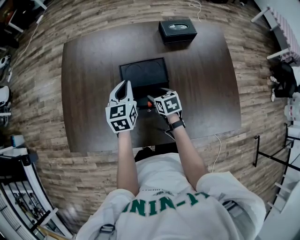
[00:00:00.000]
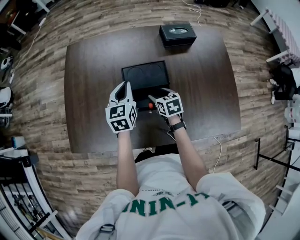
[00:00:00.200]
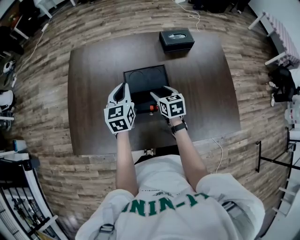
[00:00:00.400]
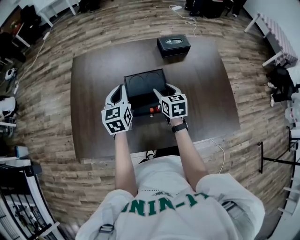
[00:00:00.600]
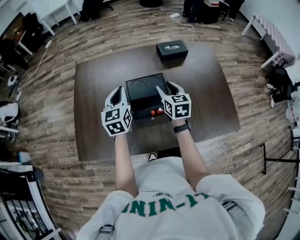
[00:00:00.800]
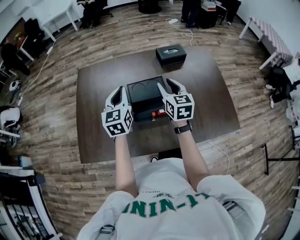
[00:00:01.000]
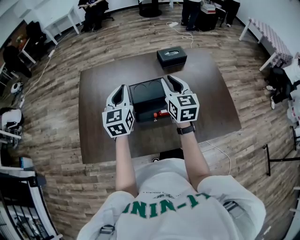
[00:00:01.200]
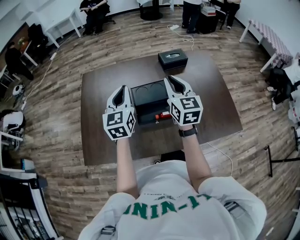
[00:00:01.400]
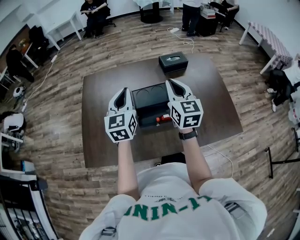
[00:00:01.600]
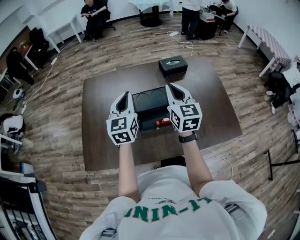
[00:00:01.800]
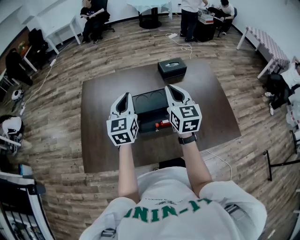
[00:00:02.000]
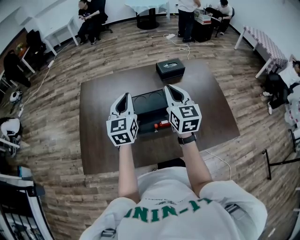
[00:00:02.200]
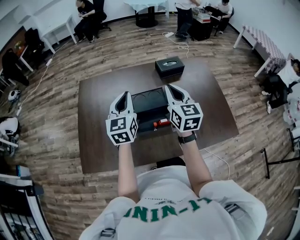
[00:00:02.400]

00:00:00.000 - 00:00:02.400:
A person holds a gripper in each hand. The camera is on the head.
00:00:00.000 - 00:00:01.200: The right gripper travels upward by approximately 30 cm, points its fingers about 40 degrees further upward, and closes up. The left gripper is displaced upward by about 15 cm.
00:00:01.200 - 00:00:02.400: The grippers make only small movements.

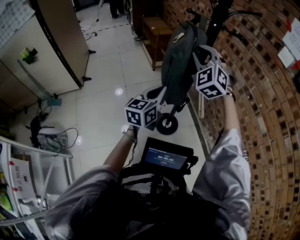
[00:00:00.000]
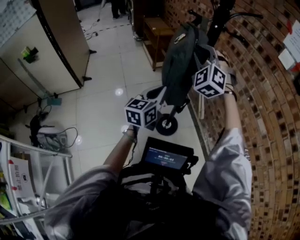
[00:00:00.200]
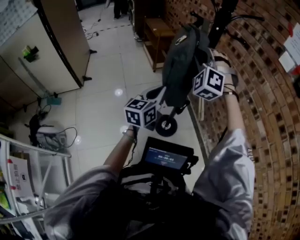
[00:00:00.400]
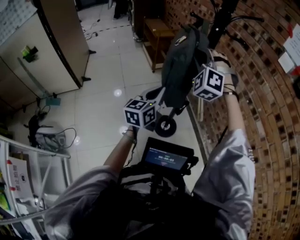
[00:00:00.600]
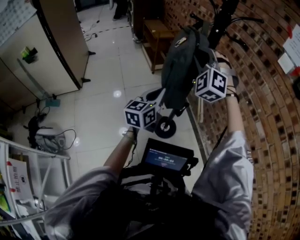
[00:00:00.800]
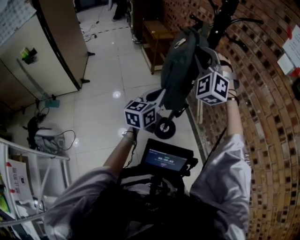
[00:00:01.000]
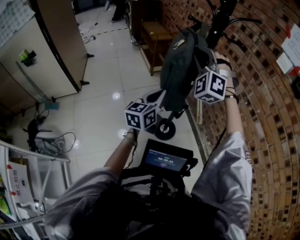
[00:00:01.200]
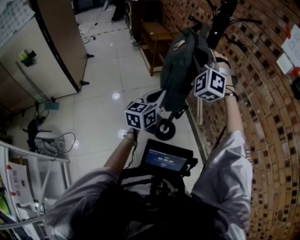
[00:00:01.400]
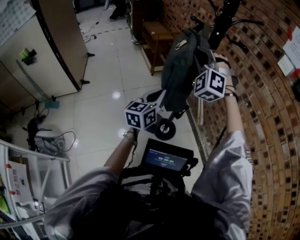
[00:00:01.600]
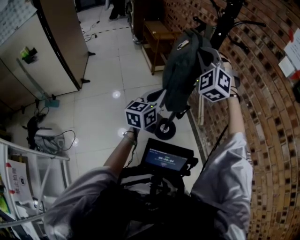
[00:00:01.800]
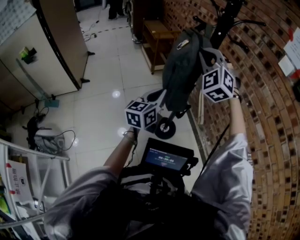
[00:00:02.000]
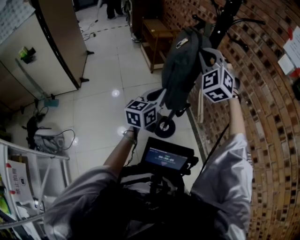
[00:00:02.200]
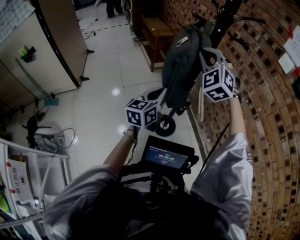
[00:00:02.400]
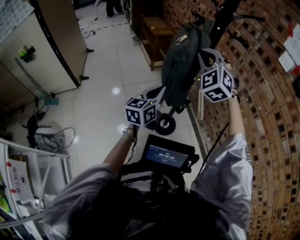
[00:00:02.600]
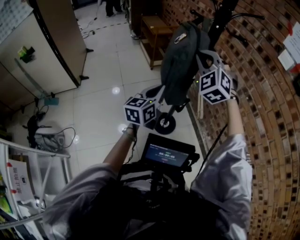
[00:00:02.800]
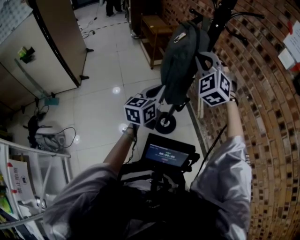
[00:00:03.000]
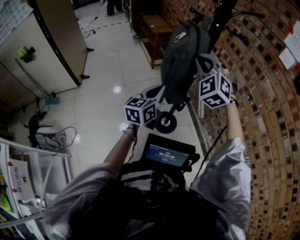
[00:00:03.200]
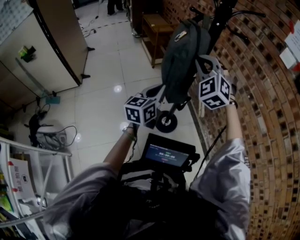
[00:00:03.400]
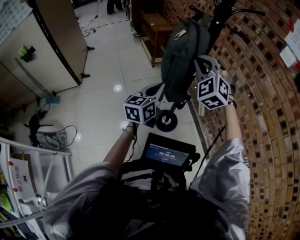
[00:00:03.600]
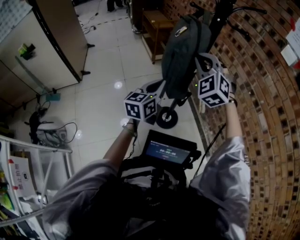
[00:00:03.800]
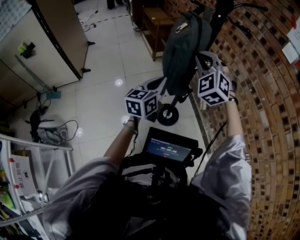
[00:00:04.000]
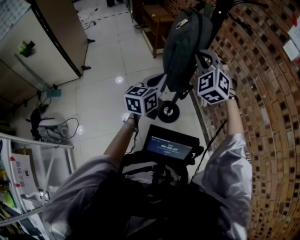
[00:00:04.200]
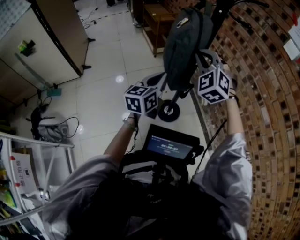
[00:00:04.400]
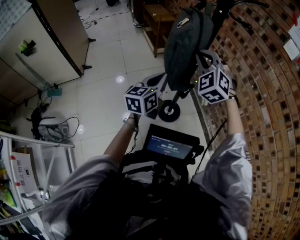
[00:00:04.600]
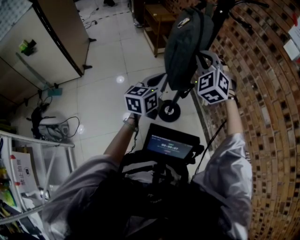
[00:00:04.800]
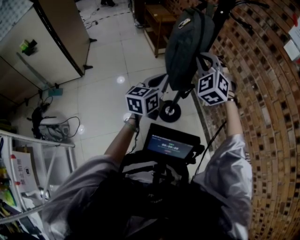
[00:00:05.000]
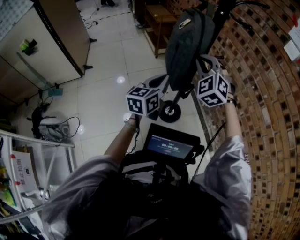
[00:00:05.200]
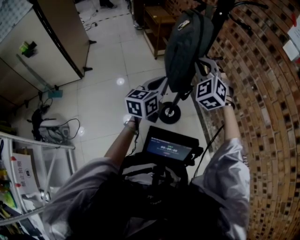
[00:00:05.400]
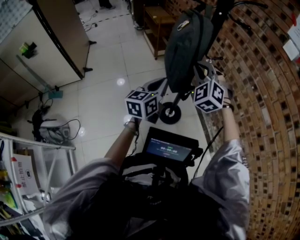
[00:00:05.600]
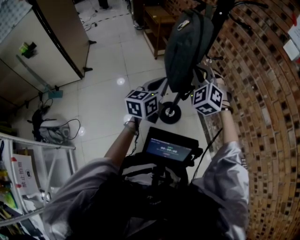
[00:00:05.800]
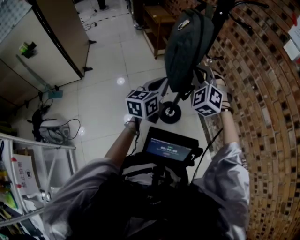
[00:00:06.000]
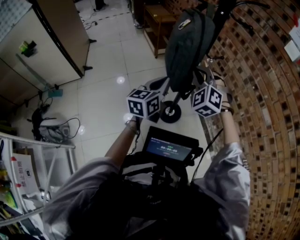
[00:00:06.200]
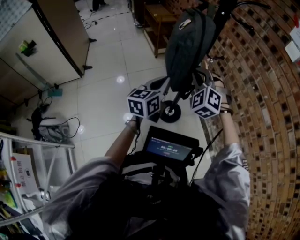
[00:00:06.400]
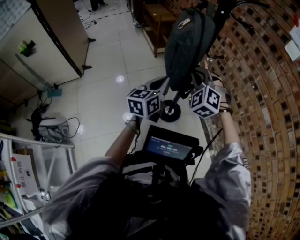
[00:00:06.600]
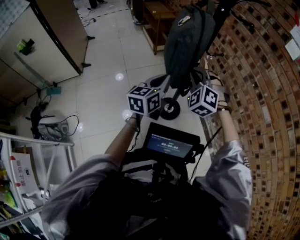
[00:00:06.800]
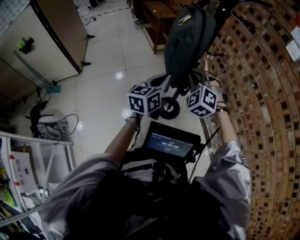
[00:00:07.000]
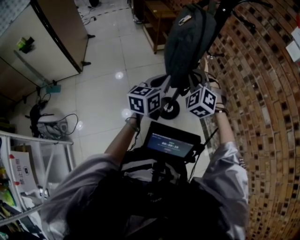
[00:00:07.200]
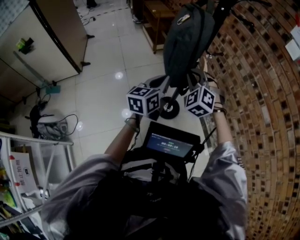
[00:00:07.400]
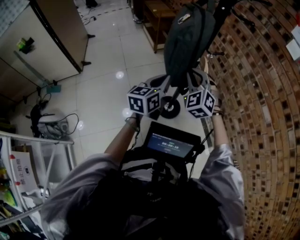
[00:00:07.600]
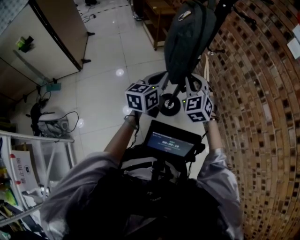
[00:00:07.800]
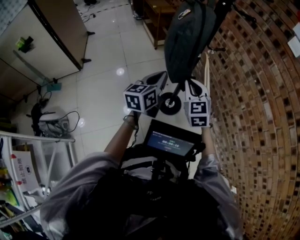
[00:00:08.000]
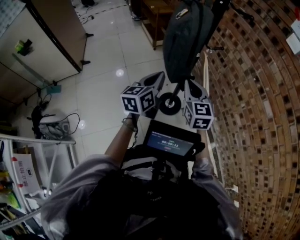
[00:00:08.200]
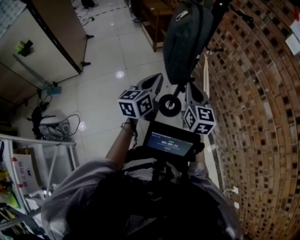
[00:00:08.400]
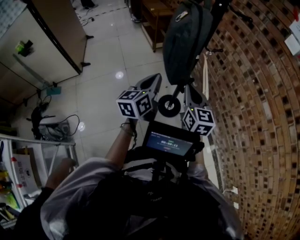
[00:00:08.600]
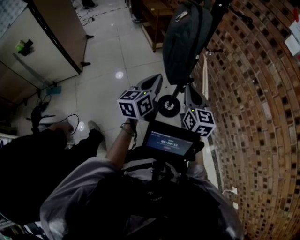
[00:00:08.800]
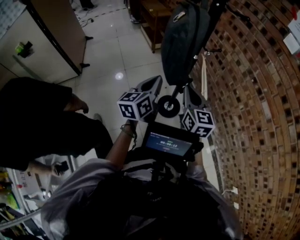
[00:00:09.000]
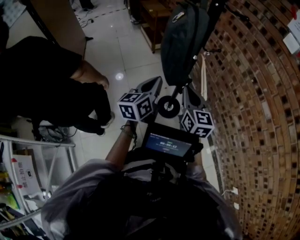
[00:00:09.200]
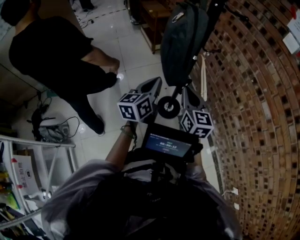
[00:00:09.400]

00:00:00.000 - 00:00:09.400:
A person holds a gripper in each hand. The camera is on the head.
00:00:01.600 - 00:00:03.200: The right gripper ends up some 5 cm from where it was, and swivels about 20 degrees.
00:00:03.200 - 00:00:04.800: There are only small adjustments of the grippers.
00:00:04.800 - 00:00:06.200: The right gripper goes some 5 cm downward.
00:00:06.200 - 00:00:07.800: The right gripper goes approximately 5 cm downward, and turns by approximately 20 degrees.
00:00:07.800 - 00:00:09.400: The right gripper changes place by some 5 cm, and rotates around the line of its fingers by about 50 degrees, clockwise from behind.

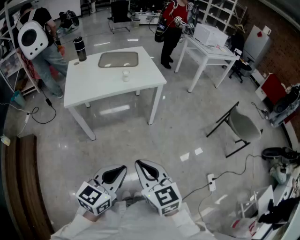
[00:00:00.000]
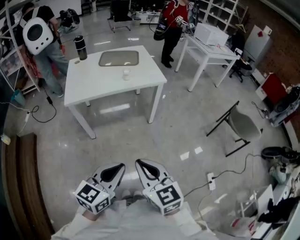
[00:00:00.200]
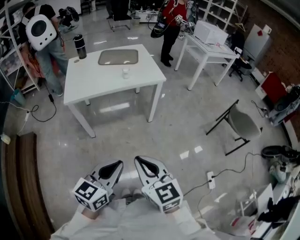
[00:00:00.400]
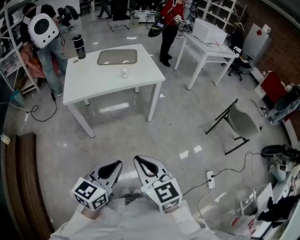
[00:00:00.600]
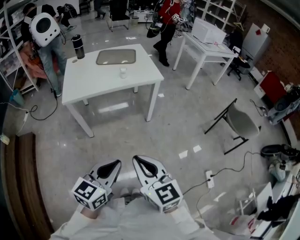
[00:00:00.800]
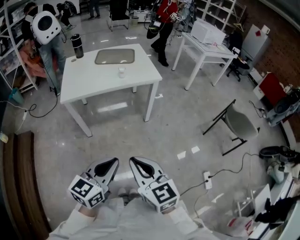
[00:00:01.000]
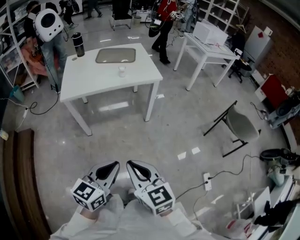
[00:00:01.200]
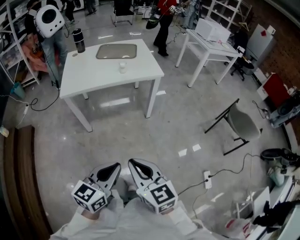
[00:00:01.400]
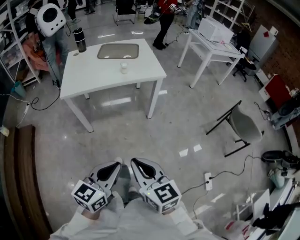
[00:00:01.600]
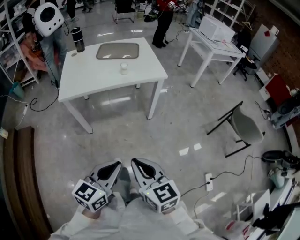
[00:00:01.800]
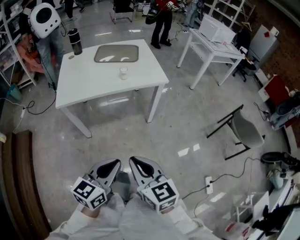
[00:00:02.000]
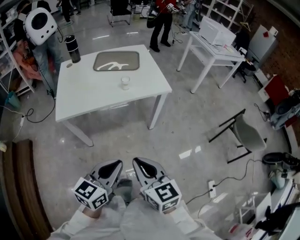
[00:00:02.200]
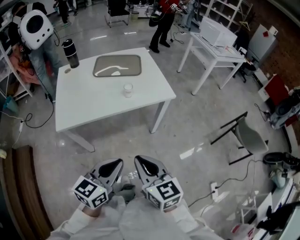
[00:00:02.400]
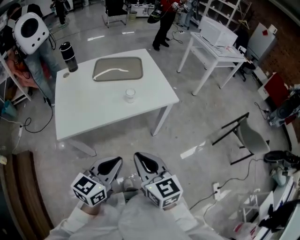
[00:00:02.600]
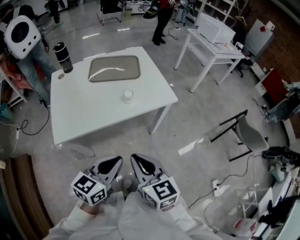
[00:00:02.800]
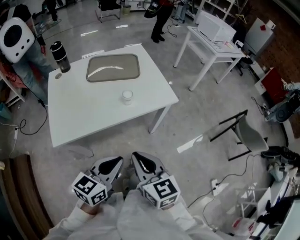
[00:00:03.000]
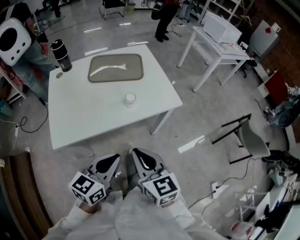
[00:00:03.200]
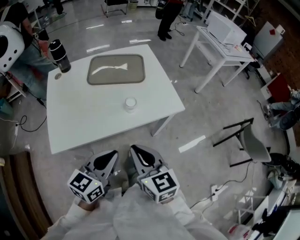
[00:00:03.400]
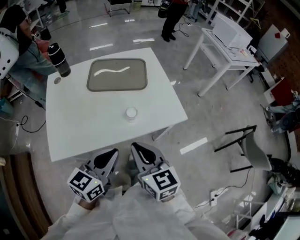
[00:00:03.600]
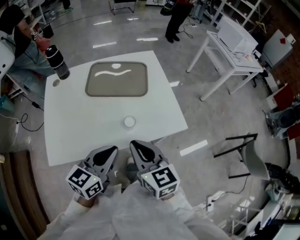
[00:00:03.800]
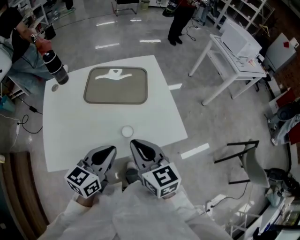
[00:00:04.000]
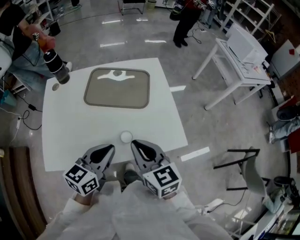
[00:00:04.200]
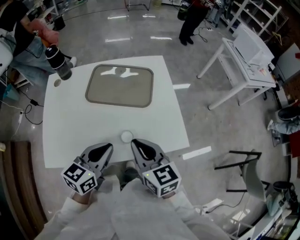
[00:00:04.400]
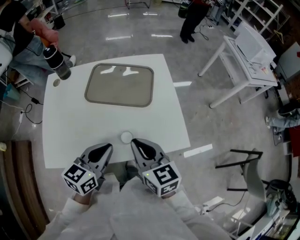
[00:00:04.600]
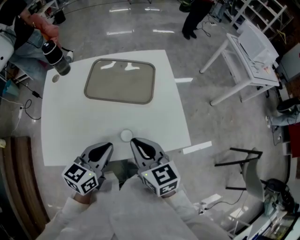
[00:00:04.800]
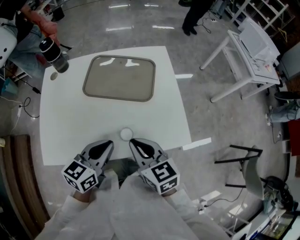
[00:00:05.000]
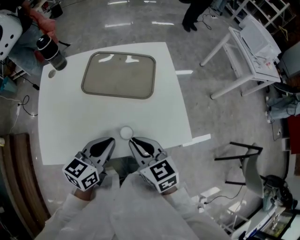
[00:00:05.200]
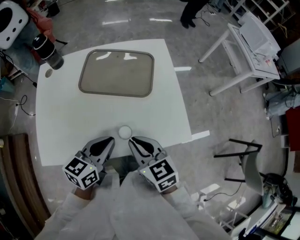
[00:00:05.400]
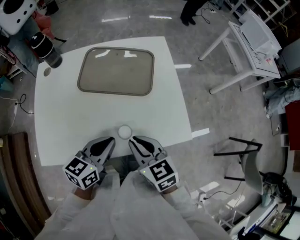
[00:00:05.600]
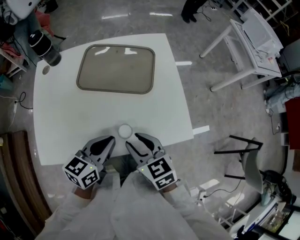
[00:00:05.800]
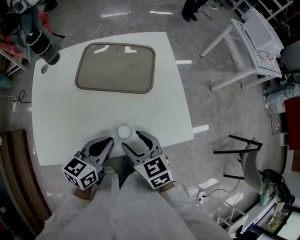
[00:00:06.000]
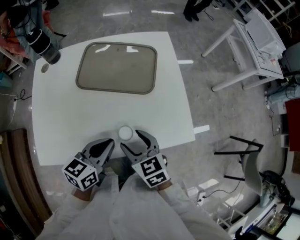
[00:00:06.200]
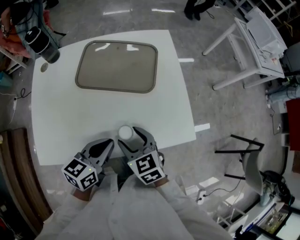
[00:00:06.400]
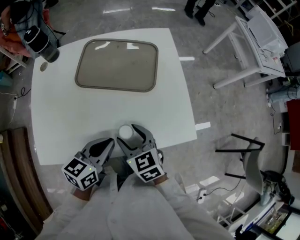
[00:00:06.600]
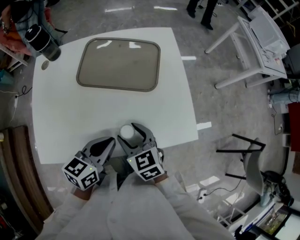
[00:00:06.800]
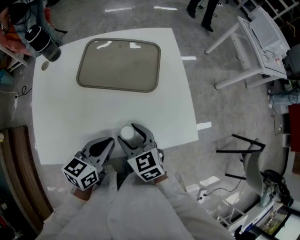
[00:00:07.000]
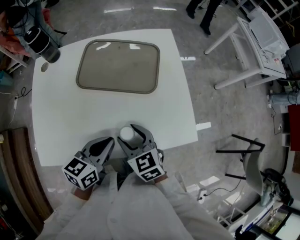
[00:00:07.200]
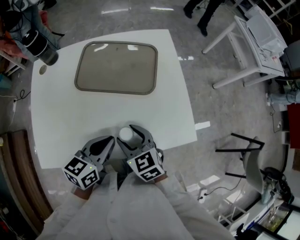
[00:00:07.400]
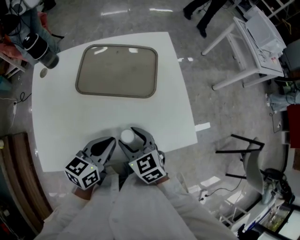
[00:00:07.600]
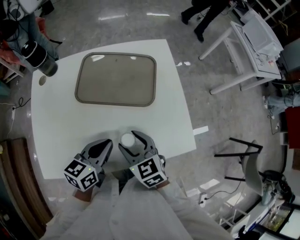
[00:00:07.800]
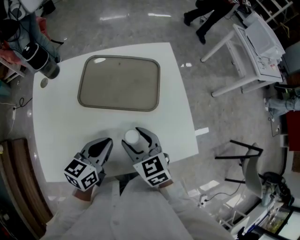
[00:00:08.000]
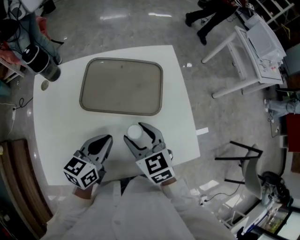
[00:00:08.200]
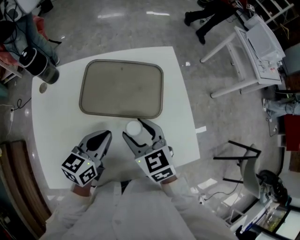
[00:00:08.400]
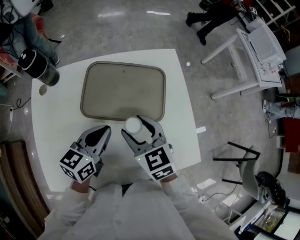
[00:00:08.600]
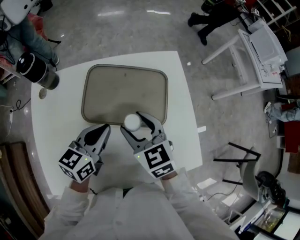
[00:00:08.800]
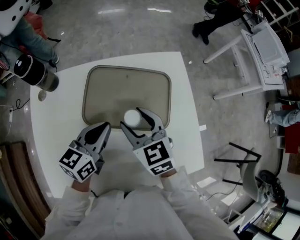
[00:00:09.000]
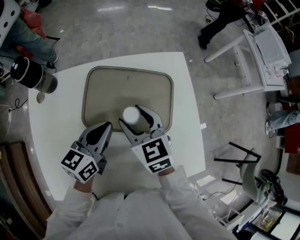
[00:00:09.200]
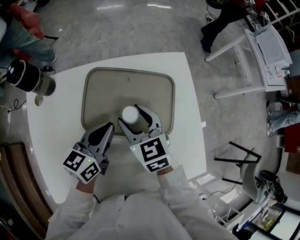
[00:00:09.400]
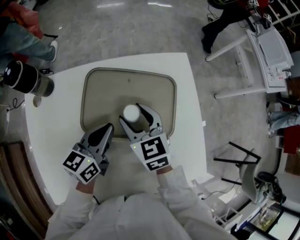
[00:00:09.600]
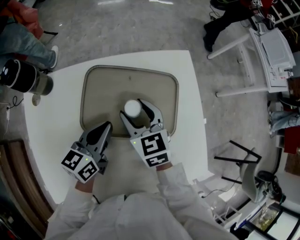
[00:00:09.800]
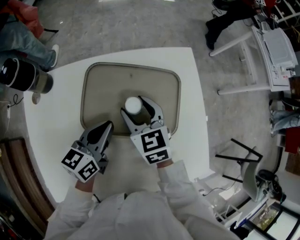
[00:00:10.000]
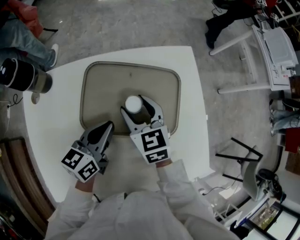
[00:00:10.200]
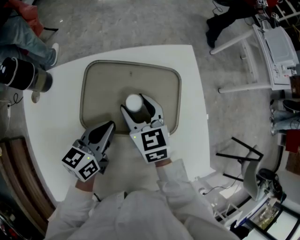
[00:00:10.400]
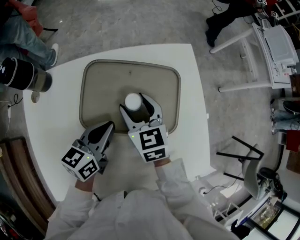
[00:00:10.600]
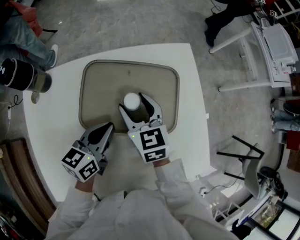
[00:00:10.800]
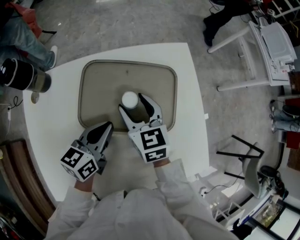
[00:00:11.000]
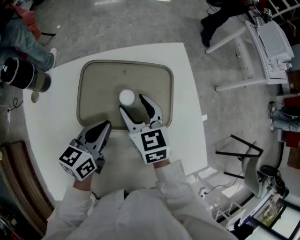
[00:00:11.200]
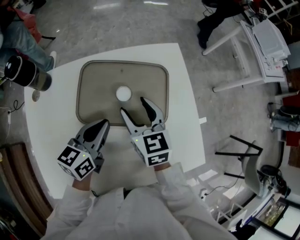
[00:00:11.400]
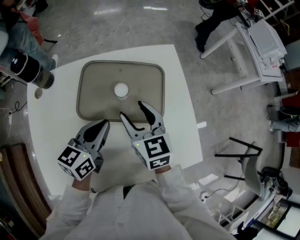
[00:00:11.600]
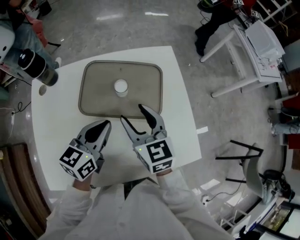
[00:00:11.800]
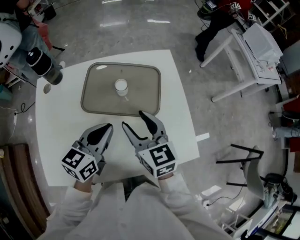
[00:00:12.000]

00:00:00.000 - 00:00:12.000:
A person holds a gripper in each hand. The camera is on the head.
00:00:00.000 - 00:00:01.600: The grippers make only small movements.
00:00:01.600 - 00:00:03.000: Both grippers move forward, some 35 cm.
00:00:03.000 - 00:00:04.400: The two grippers go some 30 cm forward.
00:00:04.400 - 00:00:06.000: The grippers both shift downward by roughly 10 cm. The right gripper opens its fingers.
00:00:06.000 - 00:00:07.600: The right gripper changes place by about 5 cm.
00:00:07.600 - 00:00:09.000: The left gripper shifts approximately 20 cm forward and to the left. Meanwhile the right gripper shifts approximately 20 cm forward.
00:00:09.000 - 00:00:10.400: The left gripper travels downward by some 5 cm. The right gripper travels forward and downward by approximately 10 cm.
00:00:10.400 - 00:00:12.000: Both grippers move backward, upward and to the right, some 20 cm.
